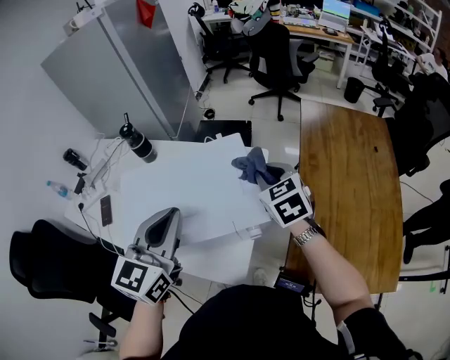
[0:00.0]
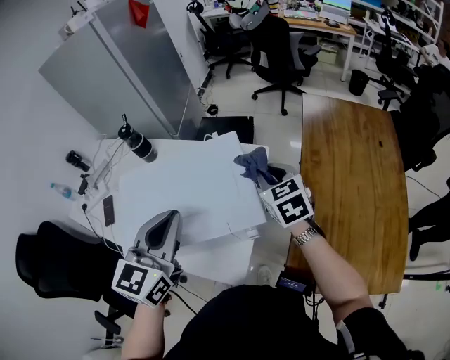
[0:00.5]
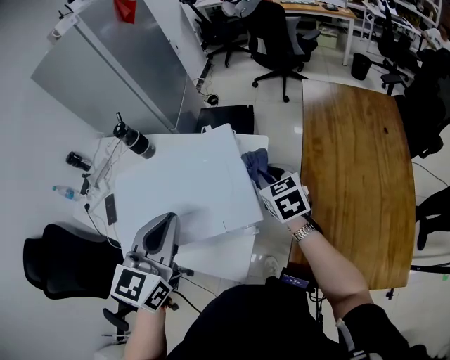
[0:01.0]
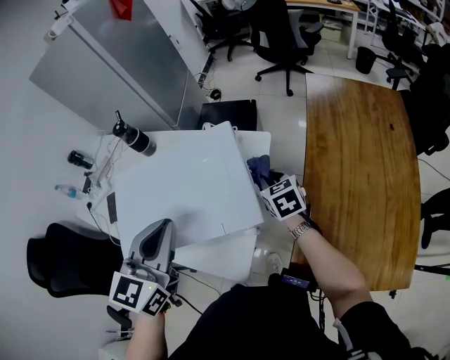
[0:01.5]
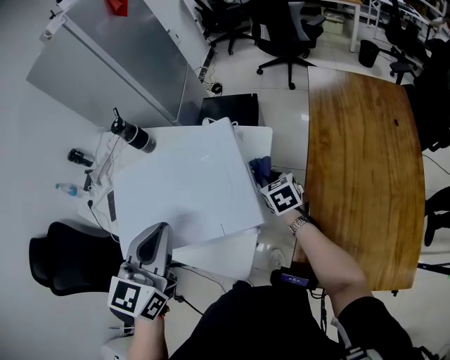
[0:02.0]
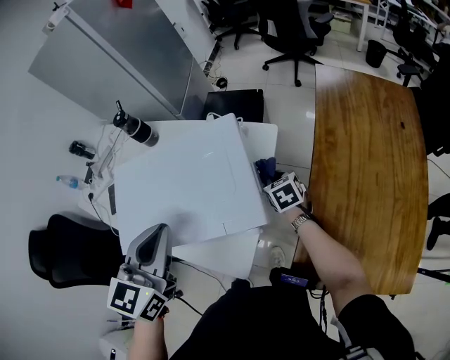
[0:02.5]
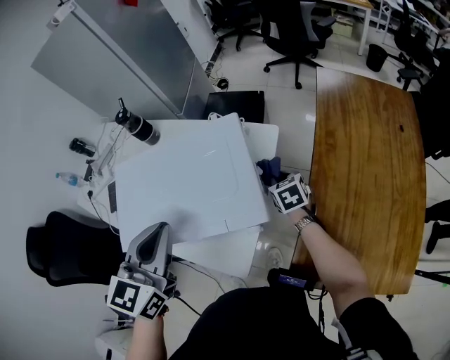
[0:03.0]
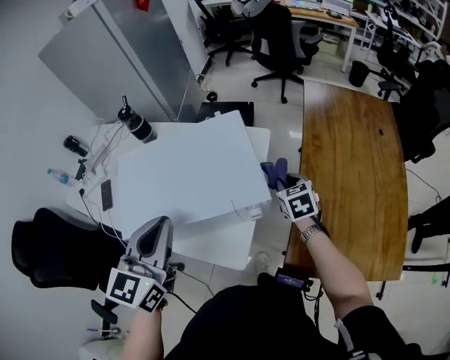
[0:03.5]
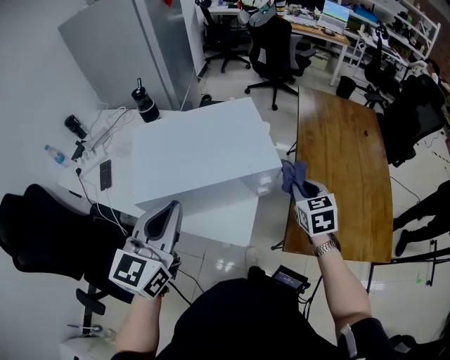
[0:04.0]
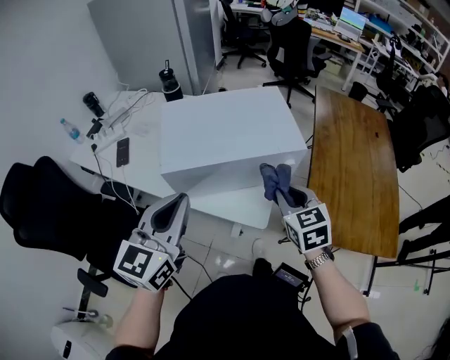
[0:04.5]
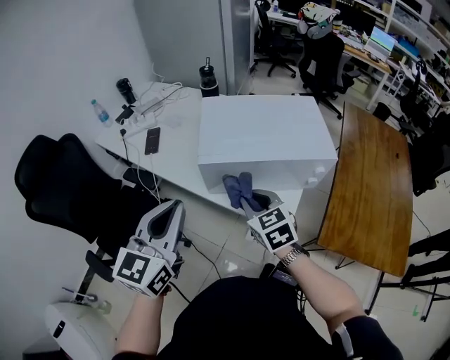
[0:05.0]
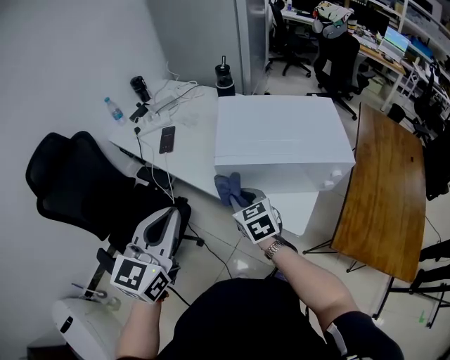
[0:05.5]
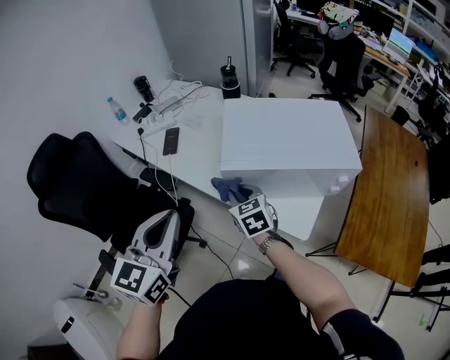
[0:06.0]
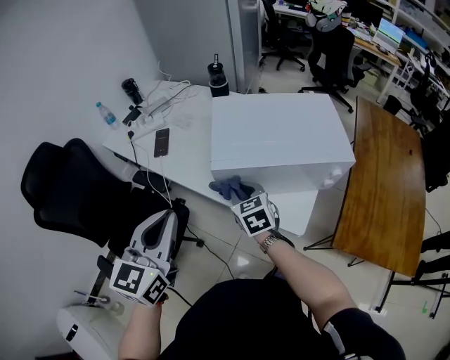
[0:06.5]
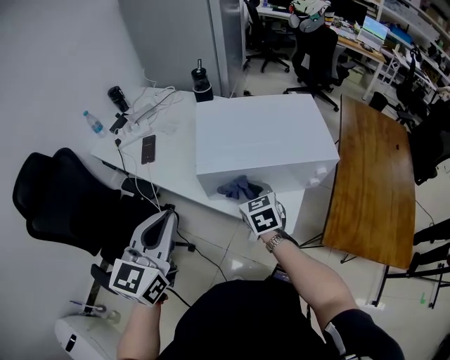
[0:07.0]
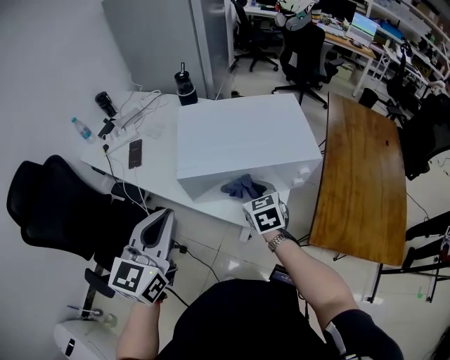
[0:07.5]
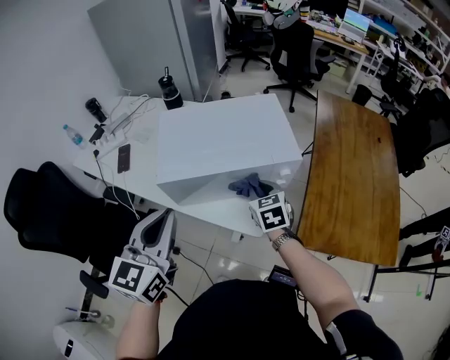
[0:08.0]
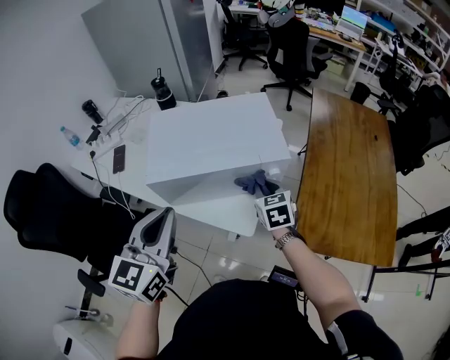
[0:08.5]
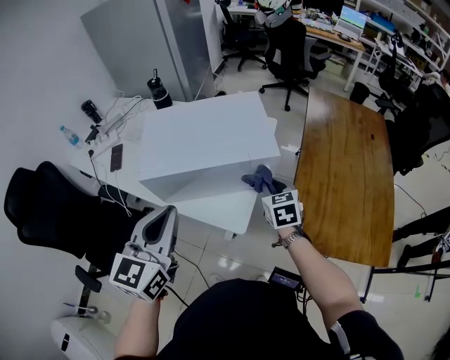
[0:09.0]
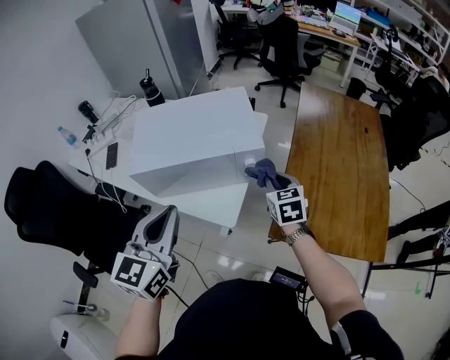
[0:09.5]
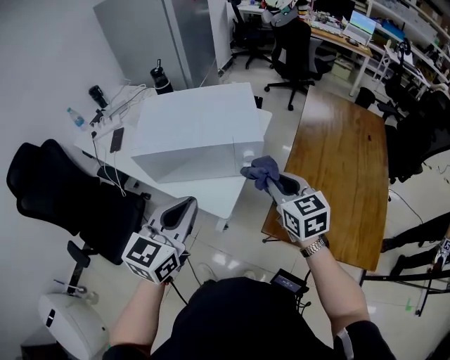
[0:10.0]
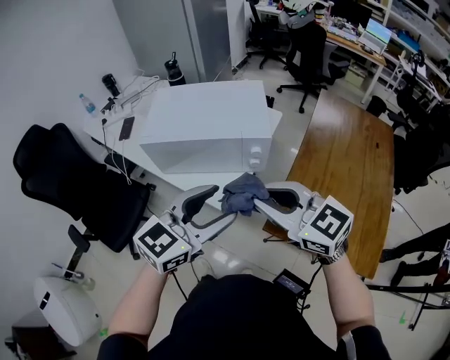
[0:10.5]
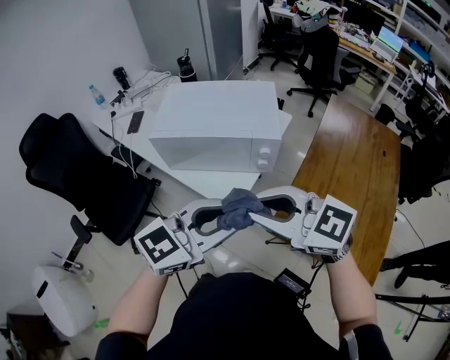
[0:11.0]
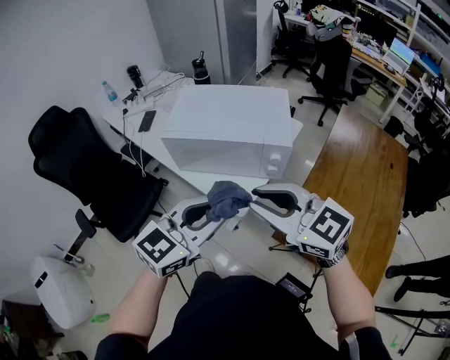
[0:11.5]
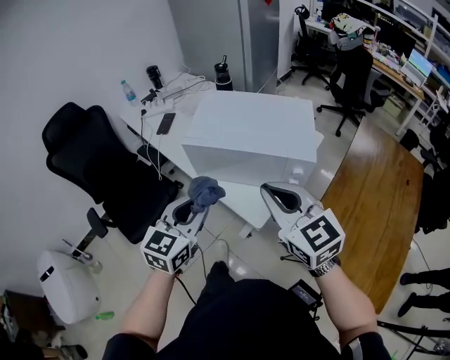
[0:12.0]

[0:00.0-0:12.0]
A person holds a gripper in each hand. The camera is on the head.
0:00.0 to 0:02.0: The right gripper travels downward by about 20 cm.
0:02.0 to 0:04.0: The left gripper heads backward and to the left, covering approximately 15 cm; the right gripper goes some 25 cm backward and upward.
0:04.0 to 0:06.0: The left gripper changes place by some 25 cm; the right gripper changes place by approximately 50 cm, and swivels roughly 30 degrees.
0:06.0 to 0:08.0: The left gripper shifts roughly 15 cm to the right. Meanwhile the right gripper goes approximately 25 cm to the right, and turns by approximately 20 degrees.
0:08.0 to 0:10.0: The right gripper heads to the right, upward and backward, covering some 20 cm. Meanwhile the left gripper is displaced to the right by about 20 cm.
0:10.0 to 0:12.0: The left gripper shifts by about 10 cm, and opens, then closes again; the right gripper ends up roughly 20 cm from where it was, and rotates approximately 30 degrees.

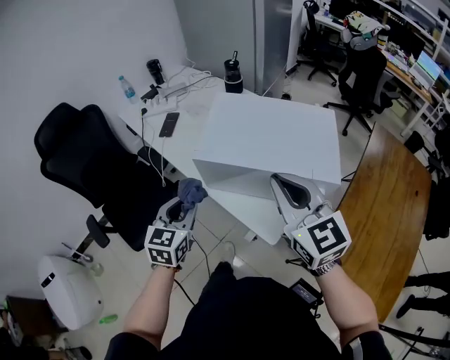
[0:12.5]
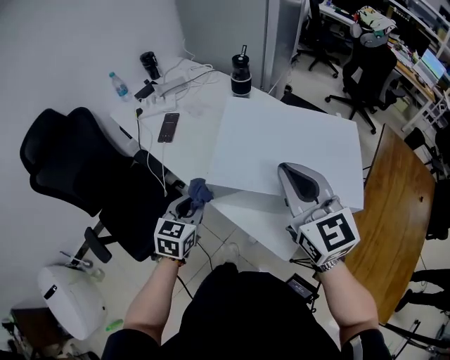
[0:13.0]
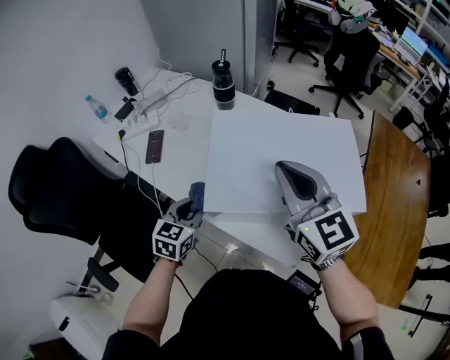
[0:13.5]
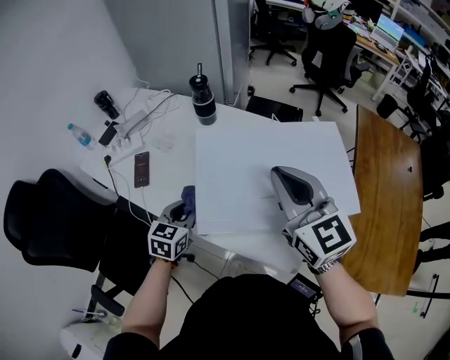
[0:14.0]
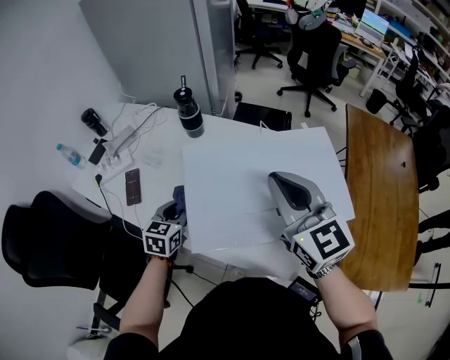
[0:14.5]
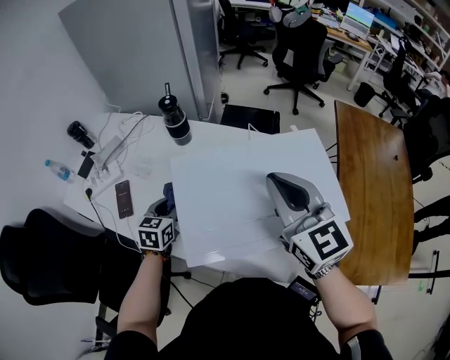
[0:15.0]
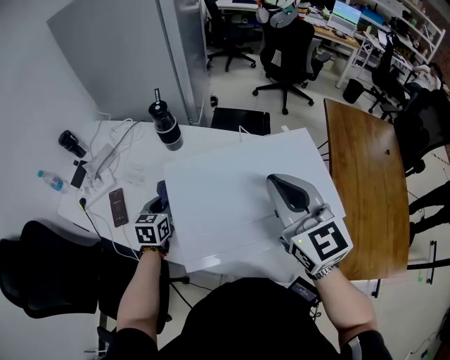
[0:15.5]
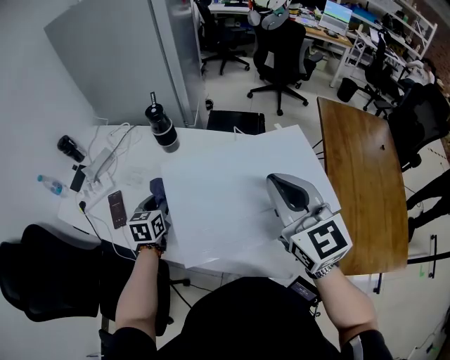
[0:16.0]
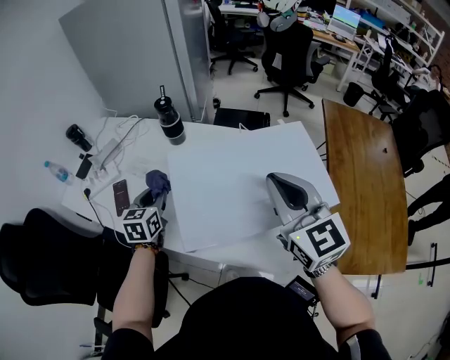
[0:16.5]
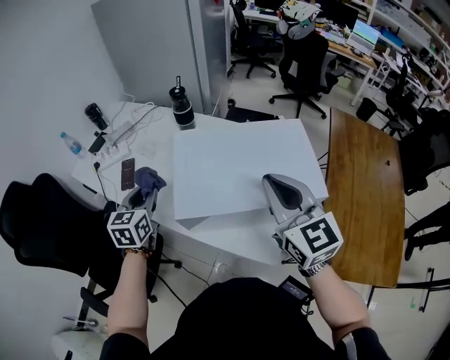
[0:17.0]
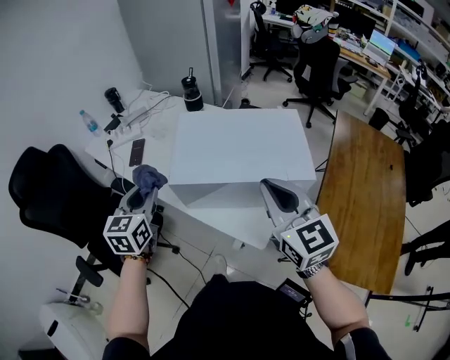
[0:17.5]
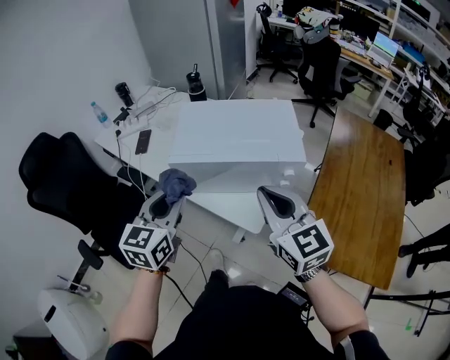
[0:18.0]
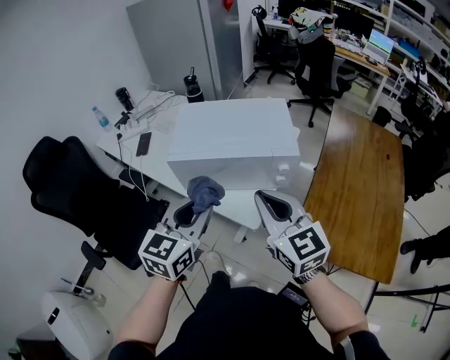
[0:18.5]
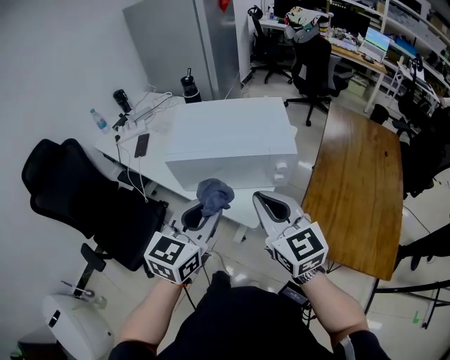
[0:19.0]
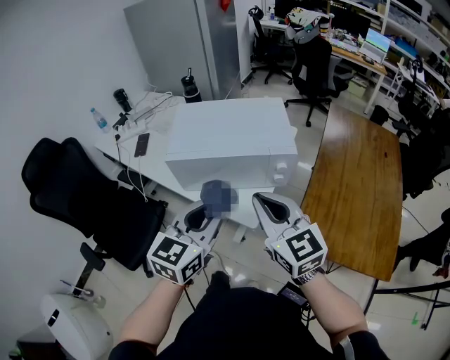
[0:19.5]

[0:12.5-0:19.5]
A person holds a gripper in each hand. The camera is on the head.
0:12.5 to 0:14.5: Both grippers move forward, approximately 25 cm. The right gripper turns by about 20 degrees. Meanwhile the left gripper rotates roughly 30 degrees.
0:14.5 to 0:16.0: The left gripper heads forward, covering some 10 cm.
0:16.0 to 0:17.5: The right gripper travels backward by some 15 cm. Meanwhile the left gripper is displaced backward and upward by approximately 30 cm, and rotates approximately 20 degrees.
0:17.5 to 0:19.5: The left gripper goes approximately 30 cm to the right and backward, and swivels some 20 degrees. The right gripper heads backward, covering roughly 15 cm.

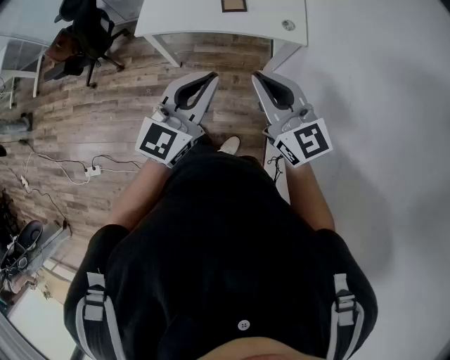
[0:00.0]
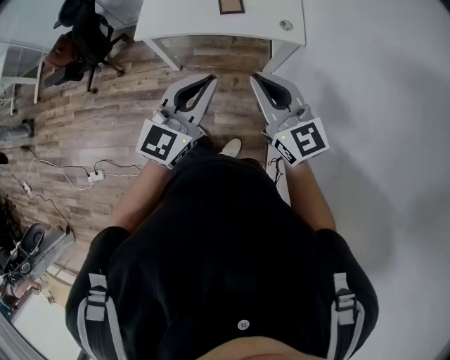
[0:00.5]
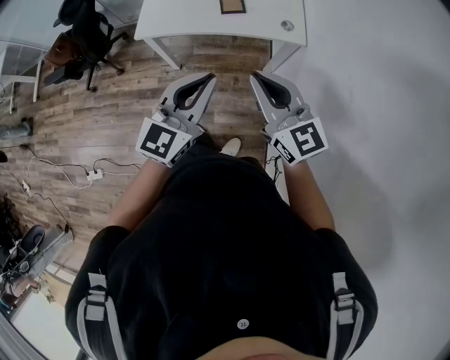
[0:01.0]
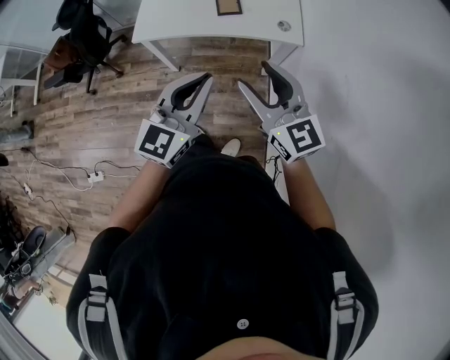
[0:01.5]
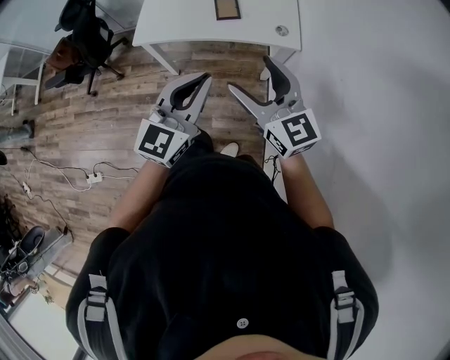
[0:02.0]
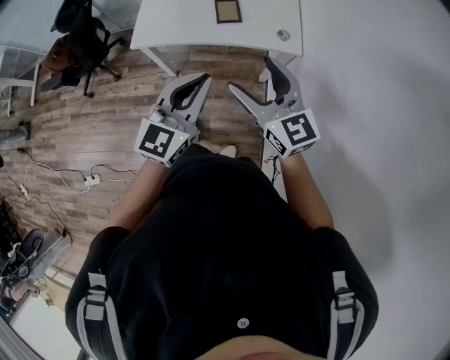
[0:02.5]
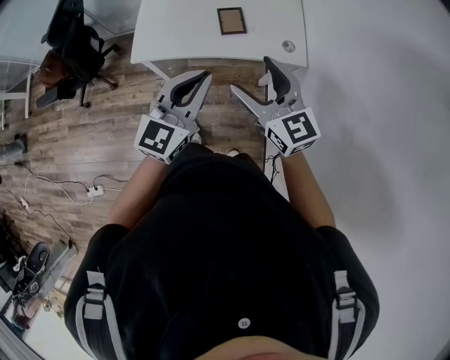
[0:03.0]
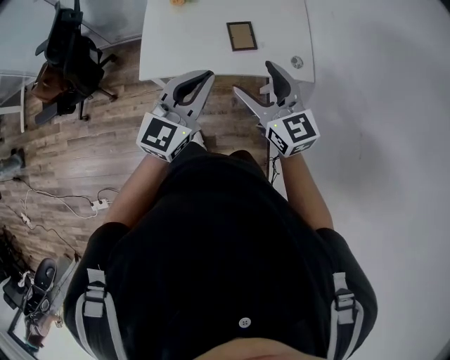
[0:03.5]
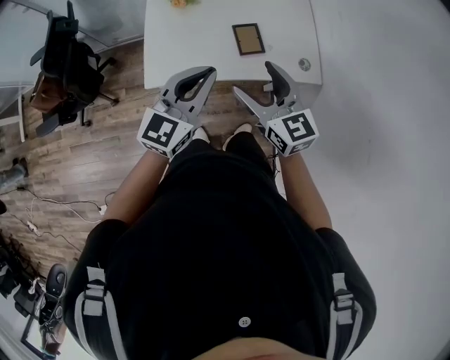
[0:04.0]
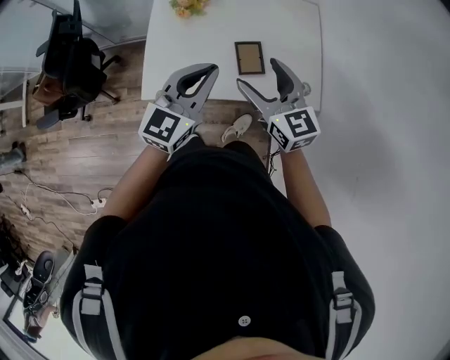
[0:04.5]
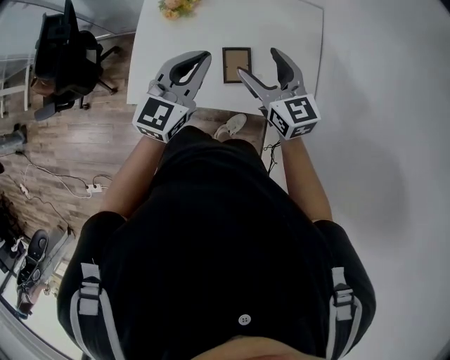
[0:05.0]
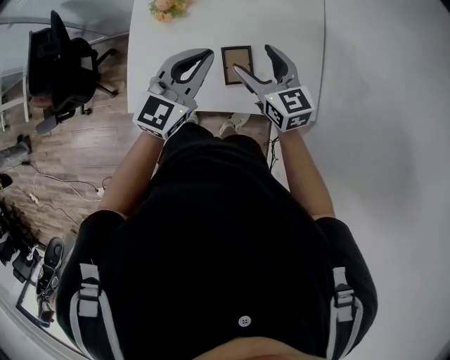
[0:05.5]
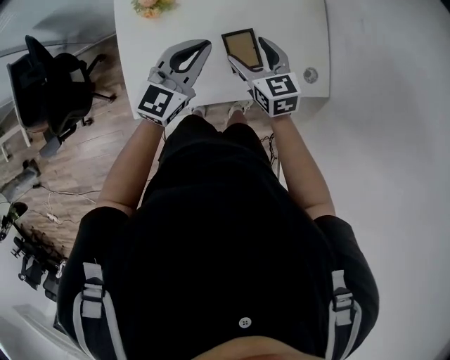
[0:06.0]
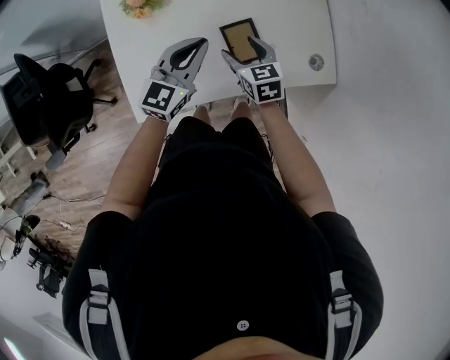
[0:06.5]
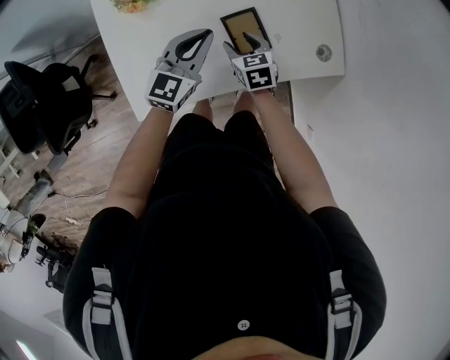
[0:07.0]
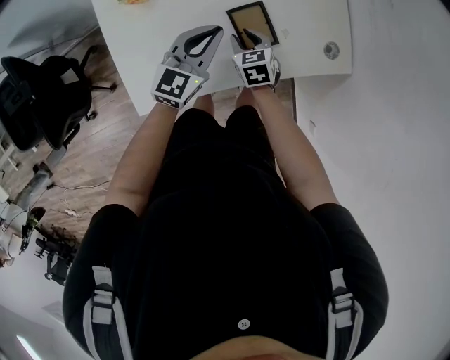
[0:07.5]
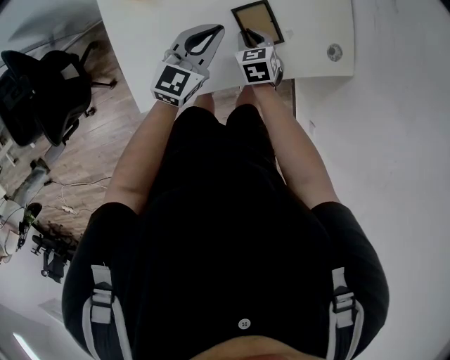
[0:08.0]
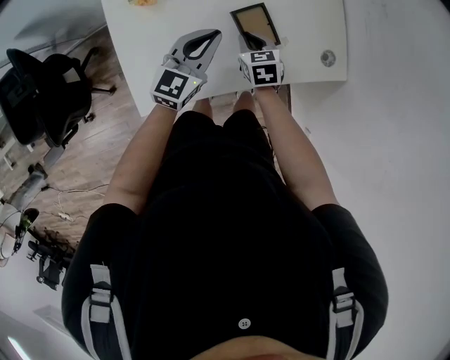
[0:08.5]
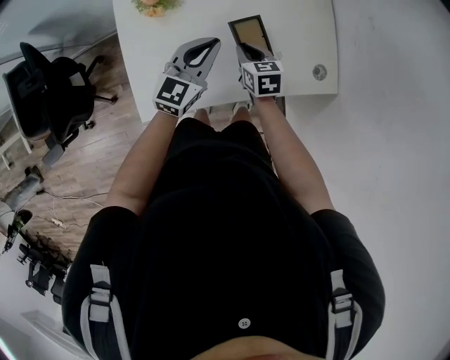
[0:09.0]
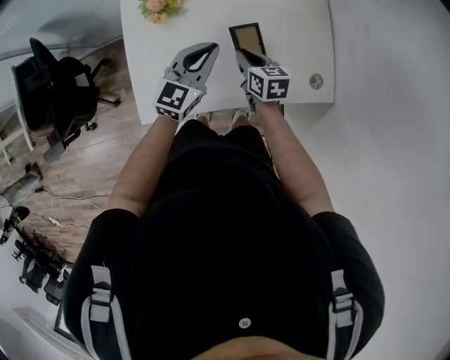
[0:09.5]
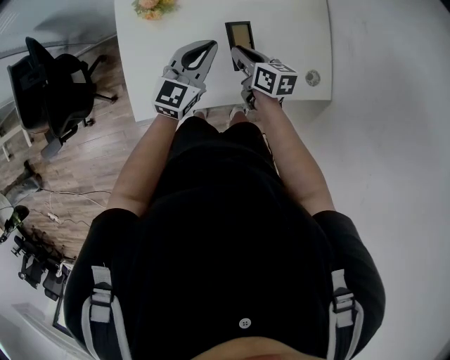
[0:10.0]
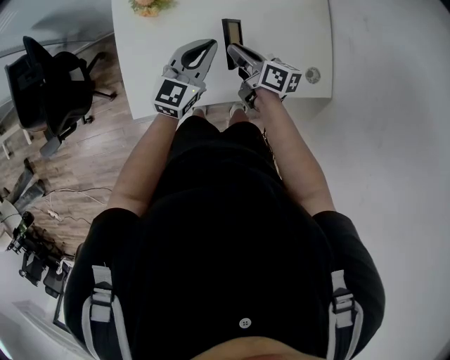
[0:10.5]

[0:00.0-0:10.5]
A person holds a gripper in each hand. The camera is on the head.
0:00.0 to 0:02.0: The right gripper opens its fingers.
0:02.0 to 0:04.0: The two grippers go about 35 cm forward and to the left.
0:04.0 to 0:06.5: The right gripper travels downward and forward by roughly 35 cm, and rotates approximately 30 degrees, while the left gripper moves forward and downward, about 30 cm.
0:06.5 to 0:08.5: The right gripper shifts about 5 cm downward, and closes its fingers.
0:08.5 to 0:10.5: The right gripper shifts roughly 10 cm upward, and angles its fingers upward, by some 30 degrees.
